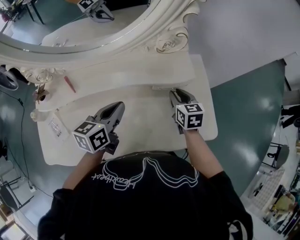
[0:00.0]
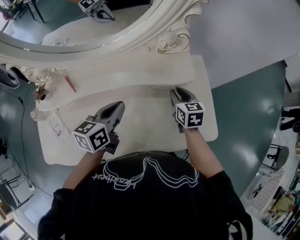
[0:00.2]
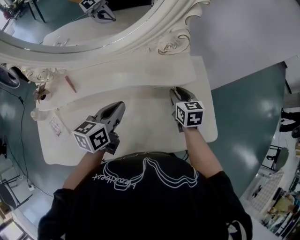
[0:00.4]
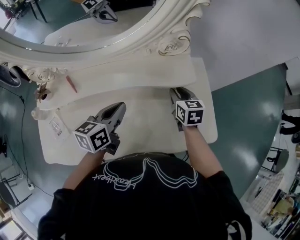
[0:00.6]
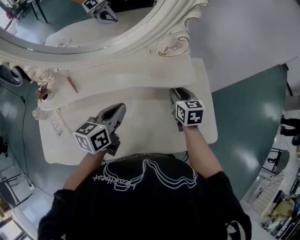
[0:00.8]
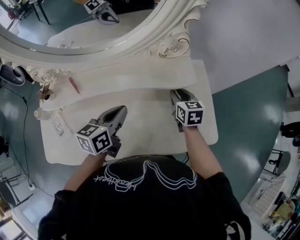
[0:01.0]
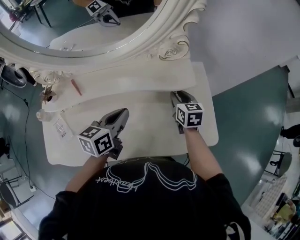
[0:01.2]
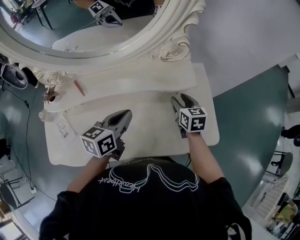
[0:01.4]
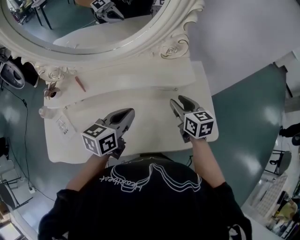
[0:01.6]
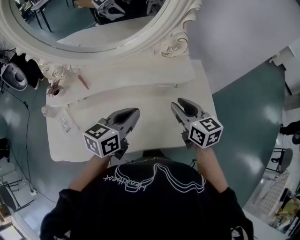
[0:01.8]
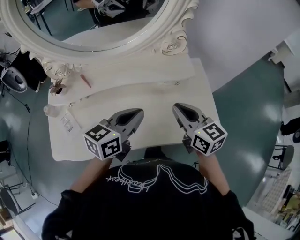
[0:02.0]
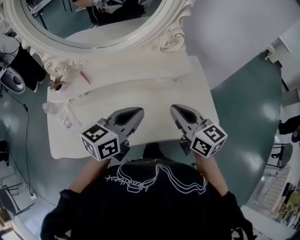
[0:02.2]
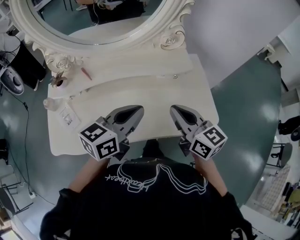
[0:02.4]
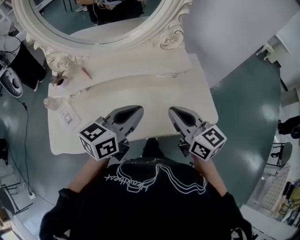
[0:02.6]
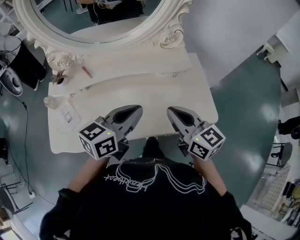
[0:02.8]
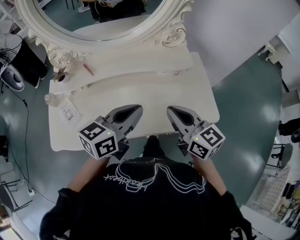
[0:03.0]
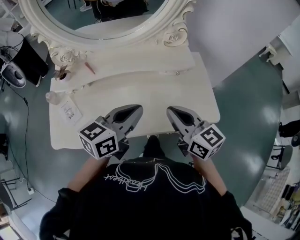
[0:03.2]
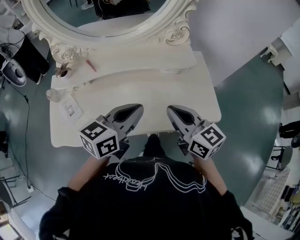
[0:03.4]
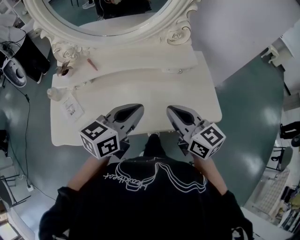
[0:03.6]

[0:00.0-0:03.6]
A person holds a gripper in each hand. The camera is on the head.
0.0 to 1.8 s: The right gripper goes roughly 15 cm upward and backward, while the left gripper travels upward and backward by some 10 cm.
1.8 to 3.6 s: The left gripper shifts roughly 10 cm backward; the right gripper moves backward, upward and to the left, roughly 15 cm, and closes its fingers.

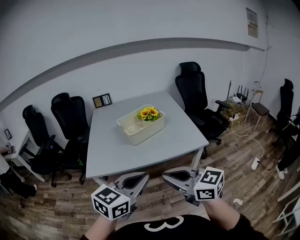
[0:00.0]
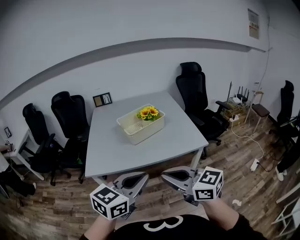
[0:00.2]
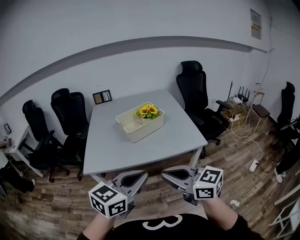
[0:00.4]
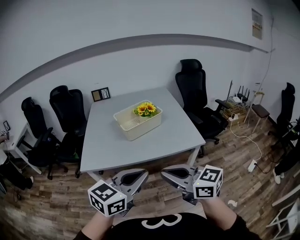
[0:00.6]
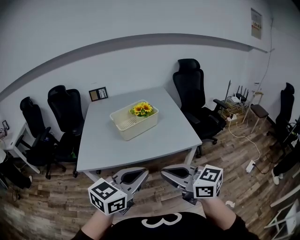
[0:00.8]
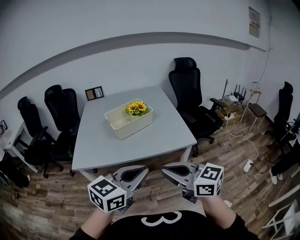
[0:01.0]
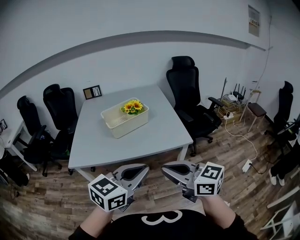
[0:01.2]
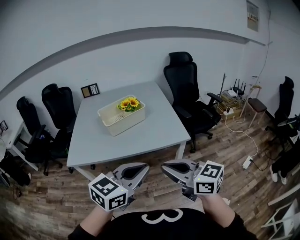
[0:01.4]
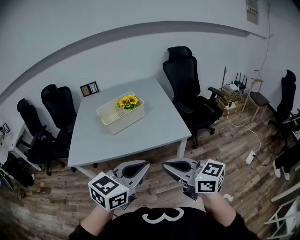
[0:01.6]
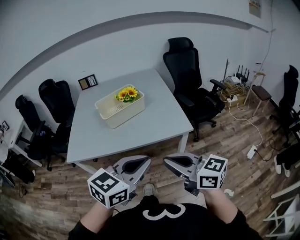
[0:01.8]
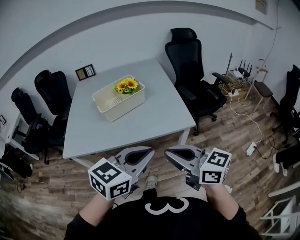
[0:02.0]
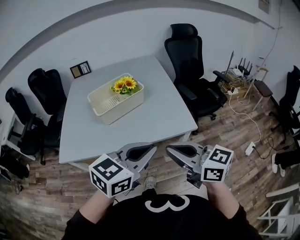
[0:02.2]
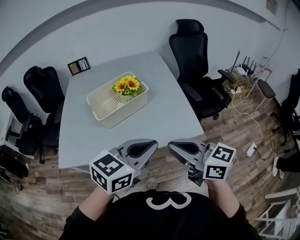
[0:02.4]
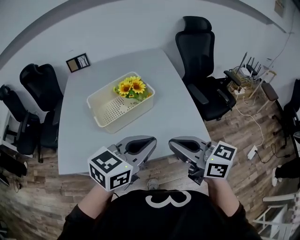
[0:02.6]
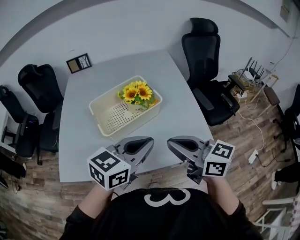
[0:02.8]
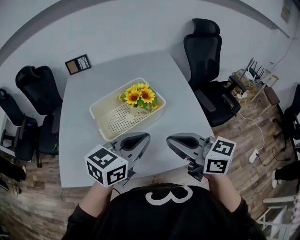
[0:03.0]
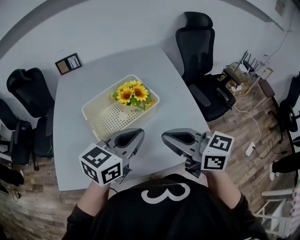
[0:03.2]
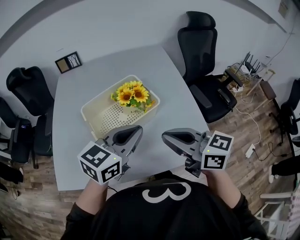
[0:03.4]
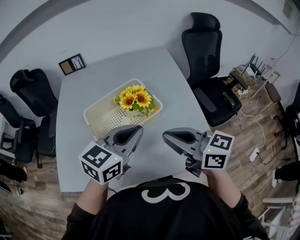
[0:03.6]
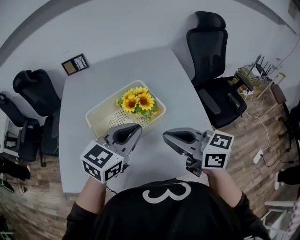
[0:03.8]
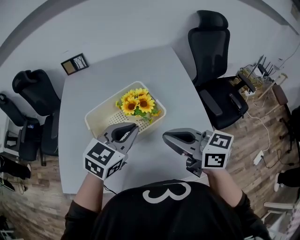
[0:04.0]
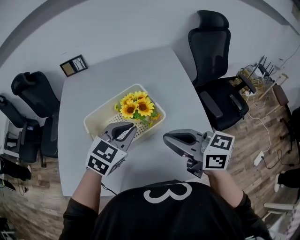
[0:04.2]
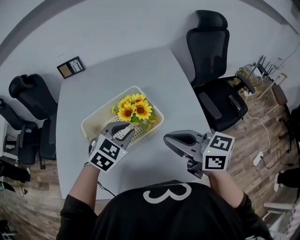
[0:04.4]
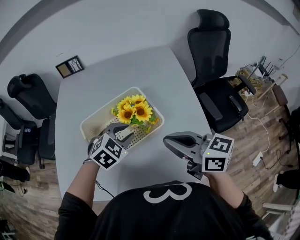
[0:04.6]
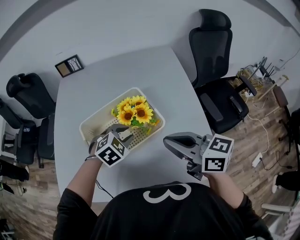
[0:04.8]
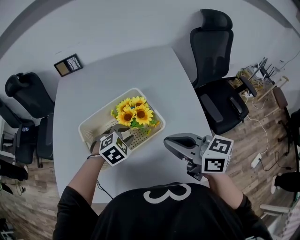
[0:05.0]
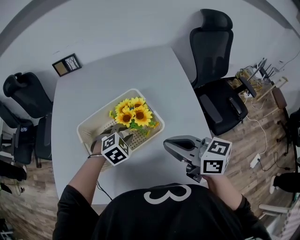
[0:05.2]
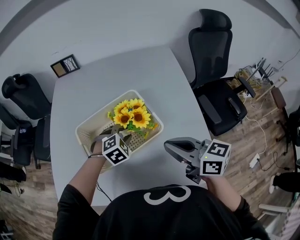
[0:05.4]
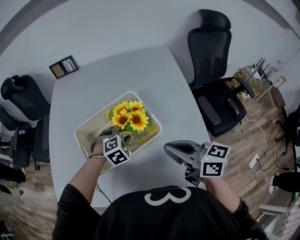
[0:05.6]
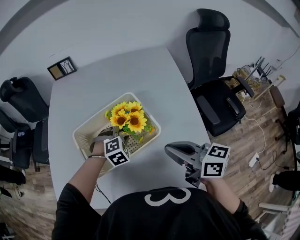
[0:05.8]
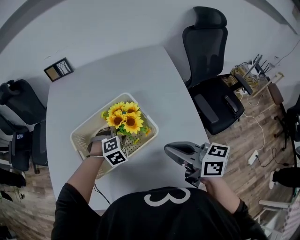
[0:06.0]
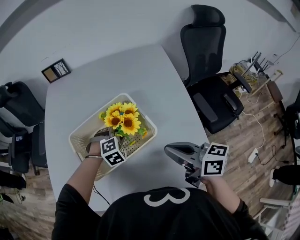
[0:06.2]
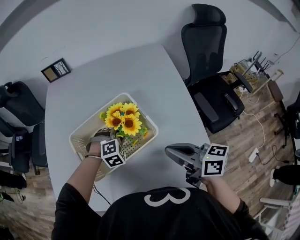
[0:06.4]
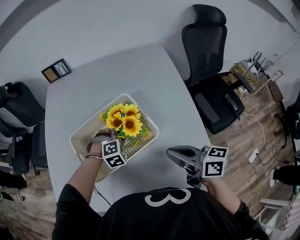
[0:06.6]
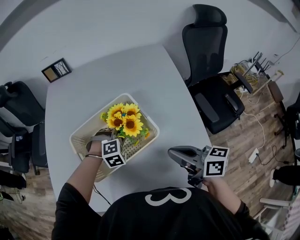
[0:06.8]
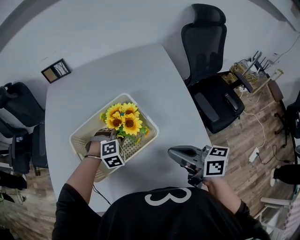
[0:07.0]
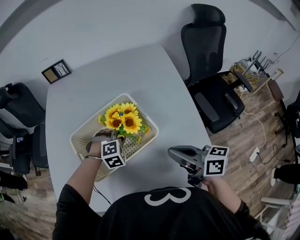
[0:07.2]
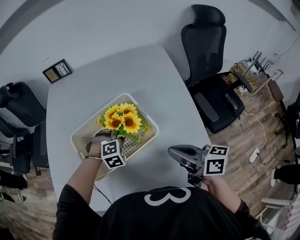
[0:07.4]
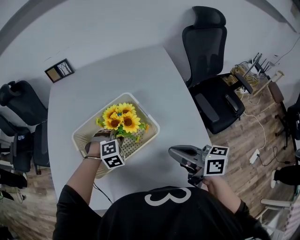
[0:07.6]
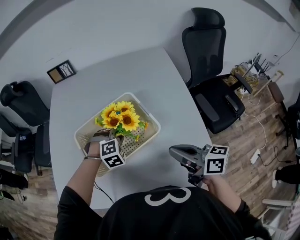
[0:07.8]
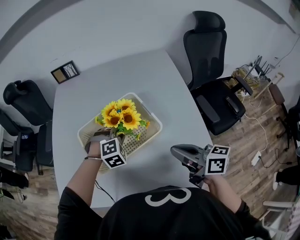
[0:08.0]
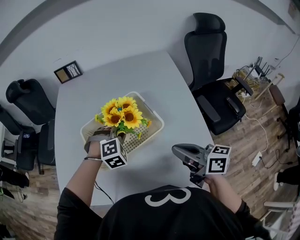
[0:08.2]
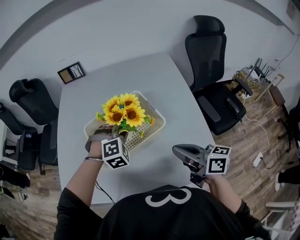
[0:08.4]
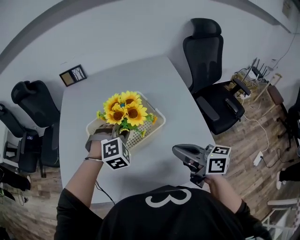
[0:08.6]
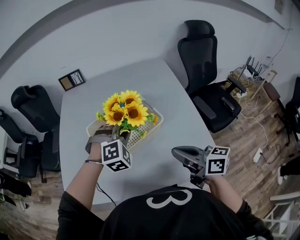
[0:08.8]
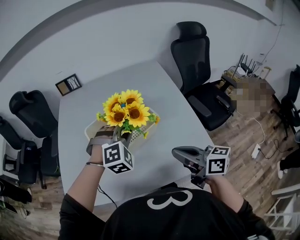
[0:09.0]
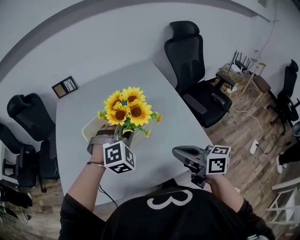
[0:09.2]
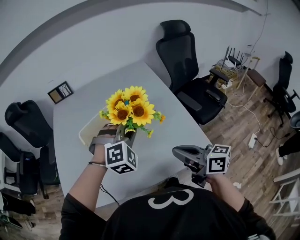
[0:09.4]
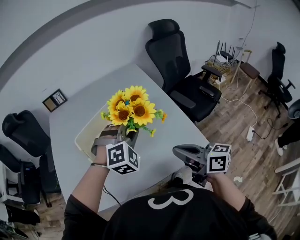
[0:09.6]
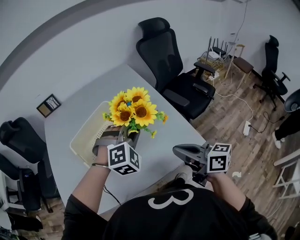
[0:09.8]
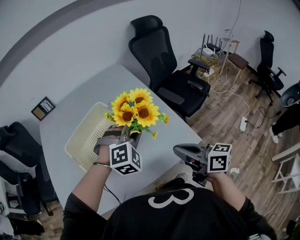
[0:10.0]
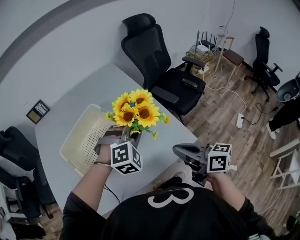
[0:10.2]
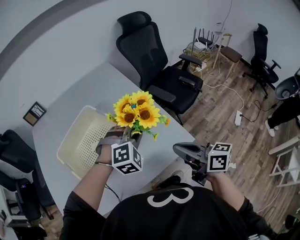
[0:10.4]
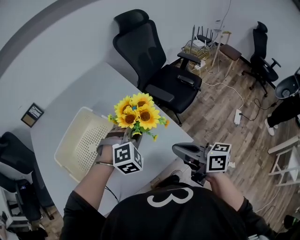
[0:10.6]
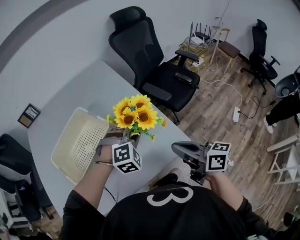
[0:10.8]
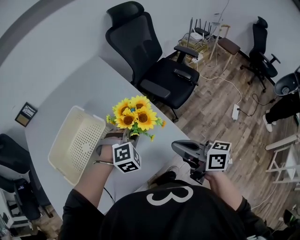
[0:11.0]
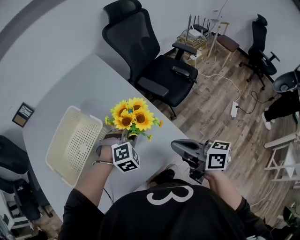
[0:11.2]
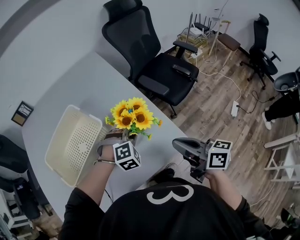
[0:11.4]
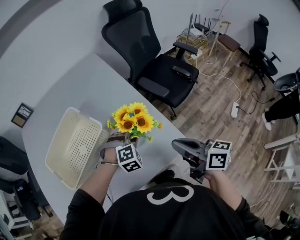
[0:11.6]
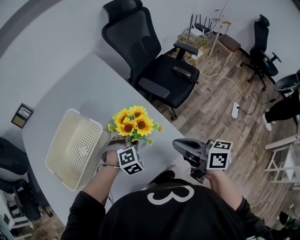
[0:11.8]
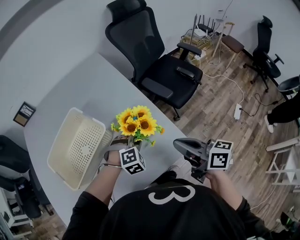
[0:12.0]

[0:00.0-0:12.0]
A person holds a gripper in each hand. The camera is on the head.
0.0 to 1.6 s: The grippers both shift to the right by some 15 cm.
1.6 to 3.0 s: Both grippers move forward, approximately 35 cm.
3.0 to 4.4 s: The left gripper moves forward and downward, about 20 cm, and turns by about 40 degrees. The right gripper heads forward, covering some 10 cm.
4.4 to 6.0 s: The right gripper heads downward, covering approximately 5 cm. Meanwhile the left gripper travels downward and forward by roughly 15 cm, and turns by about 30 degrees.
6.0 to 7.6 s: There are only small adjustments of the grippers.
7.6 to 9.0 s: The left gripper shifts approximately 20 cm upward and backward, and rotates roughly 20 degrees; the right gripper goes some 10 cm backward and to the left.
9.0 to 10.4 s: The left gripper shifts some 20 cm to the right, and swivels approximately 20 degrees. The right gripper travels to the right and backward by approximately 15 cm, and swivels some 20 degrees.
10.4 to 12.0 s: The left gripper shifts some 15 cm downward, while the right gripper is displaced forward and to the right by approximately 10 cm.

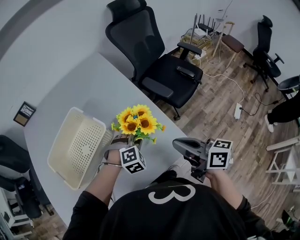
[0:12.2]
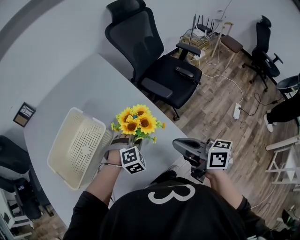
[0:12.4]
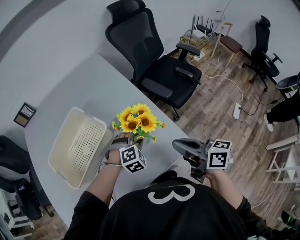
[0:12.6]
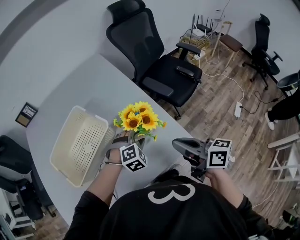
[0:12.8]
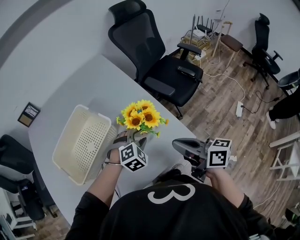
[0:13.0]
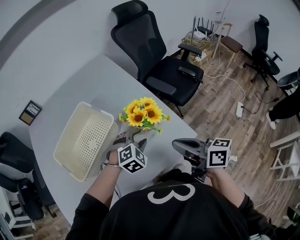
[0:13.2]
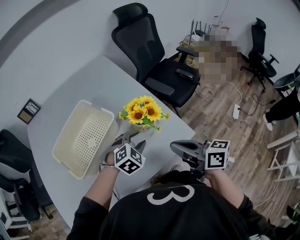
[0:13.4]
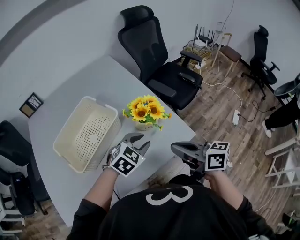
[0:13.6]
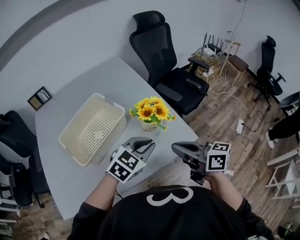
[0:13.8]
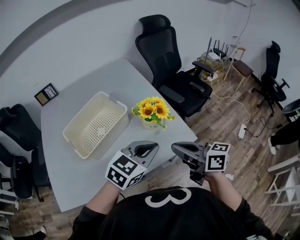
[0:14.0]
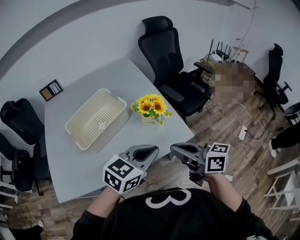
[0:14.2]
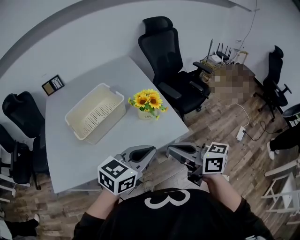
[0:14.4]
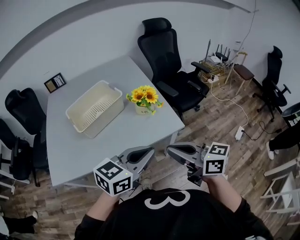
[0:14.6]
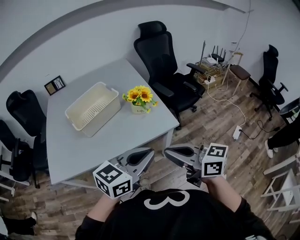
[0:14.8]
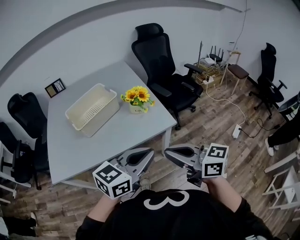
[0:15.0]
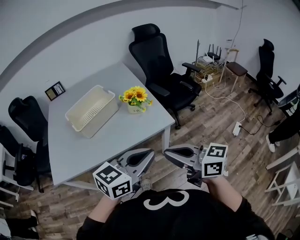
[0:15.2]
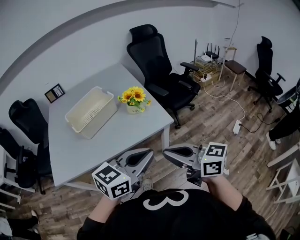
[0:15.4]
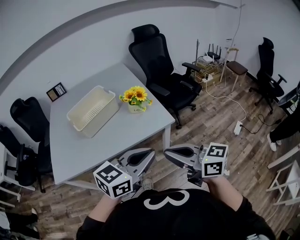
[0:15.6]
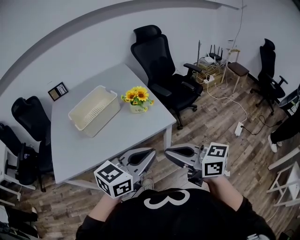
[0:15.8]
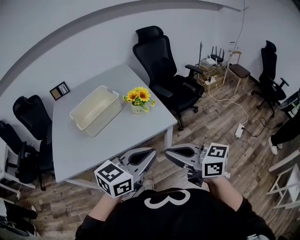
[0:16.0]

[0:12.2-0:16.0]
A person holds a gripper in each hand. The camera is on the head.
12.2 to 13.4 s: The left gripper is displaced upward by about 5 cm, changes its angle by approximately 20 degrees, and opens. Meanwhile the right gripper travels to the left and backward by roughly 10 cm.
13.4 to 14.8 s: The left gripper heads backward and upward, covering some 35 cm, angles its fingers upward, by approximately 40 degrees, and closes its fingers. The right gripper travels backward by about 20 cm, and changes its angle by approximately 30 degrees.
14.8 to 16.0 s: There are only small adjustments of the grippers.

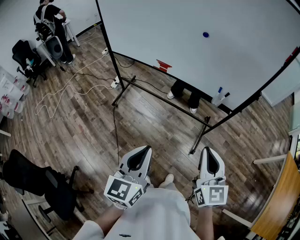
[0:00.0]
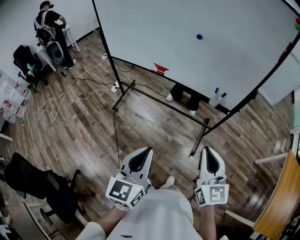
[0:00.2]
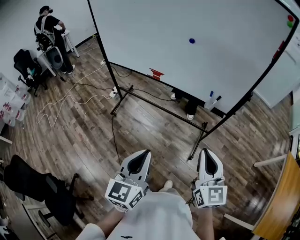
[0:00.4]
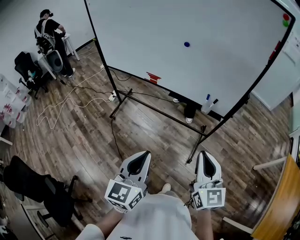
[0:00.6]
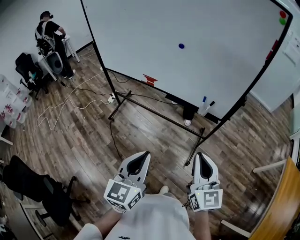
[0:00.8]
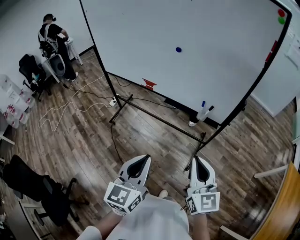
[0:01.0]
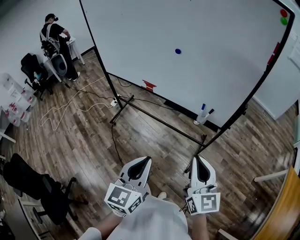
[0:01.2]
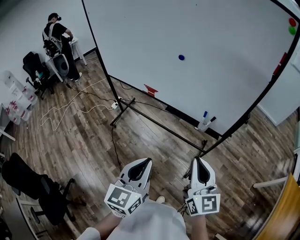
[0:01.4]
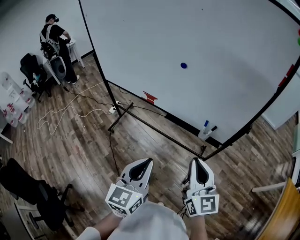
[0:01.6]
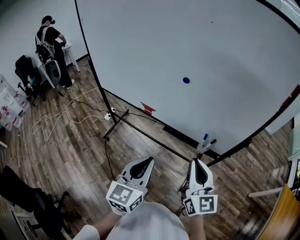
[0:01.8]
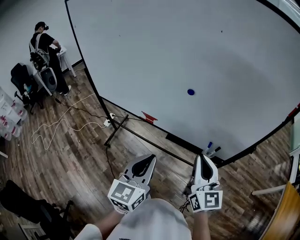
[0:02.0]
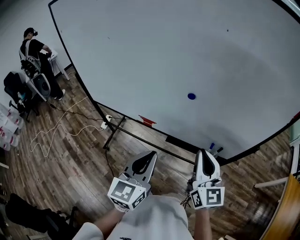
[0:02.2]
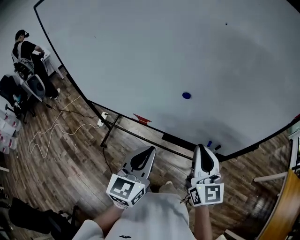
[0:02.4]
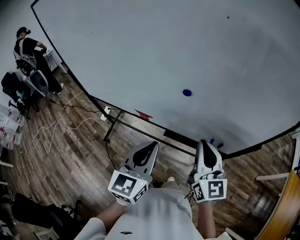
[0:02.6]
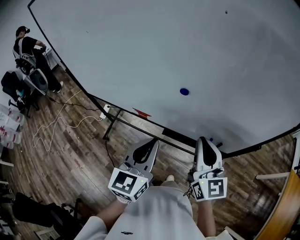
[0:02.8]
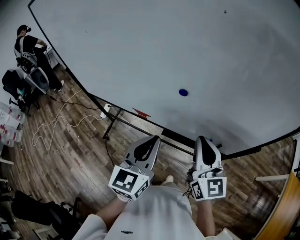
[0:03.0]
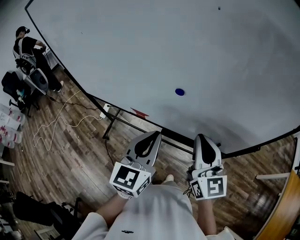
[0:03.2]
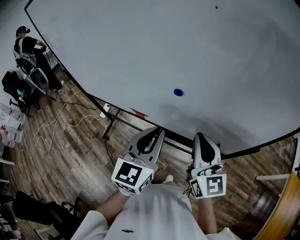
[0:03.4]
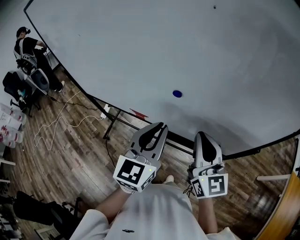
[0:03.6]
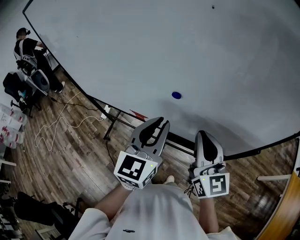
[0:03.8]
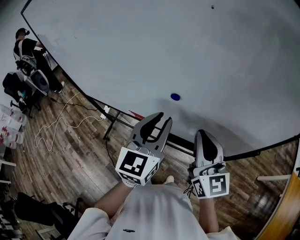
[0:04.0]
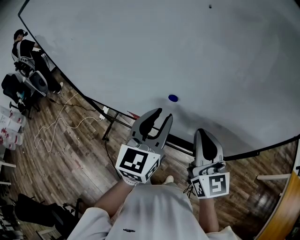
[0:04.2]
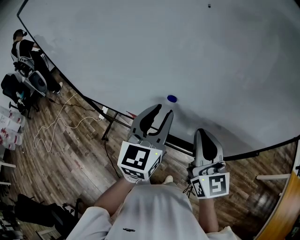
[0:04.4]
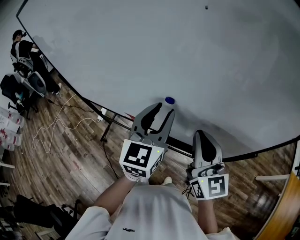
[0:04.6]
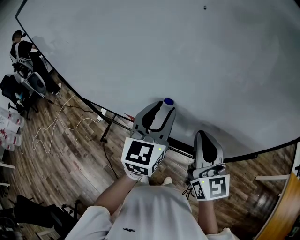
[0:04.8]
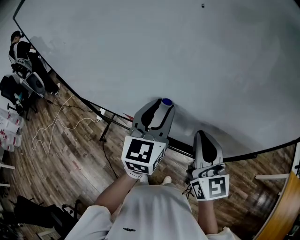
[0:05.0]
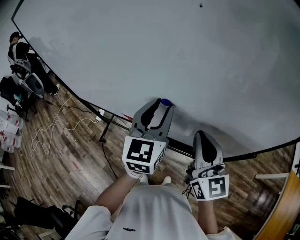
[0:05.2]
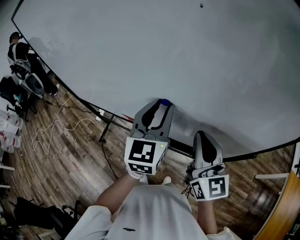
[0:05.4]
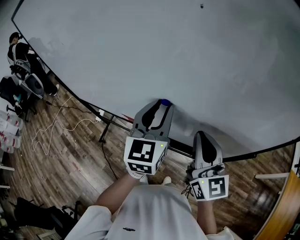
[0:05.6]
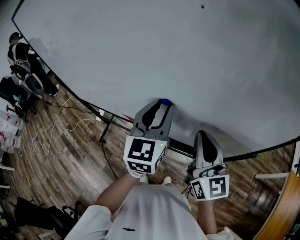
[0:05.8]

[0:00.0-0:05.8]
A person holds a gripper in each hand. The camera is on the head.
0.0 to 1.4 s: The grippers both shift to the right and forward by some 15 cm.
1.4 to 2.8 s: The grippers both shift forward by about 30 cm.
2.8 to 4.4 s: The right gripper moves approximately 5 cm; the left gripper moves forward, to the right and upward, some 15 cm, and opens up.
4.4 to 5.8 s: The grippers make only small movements.
